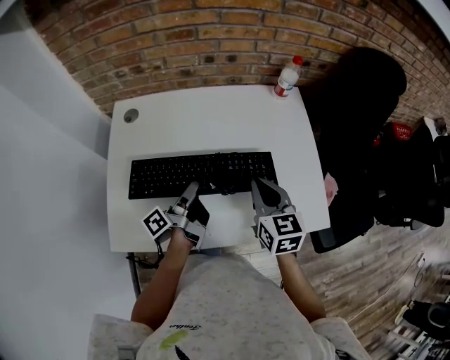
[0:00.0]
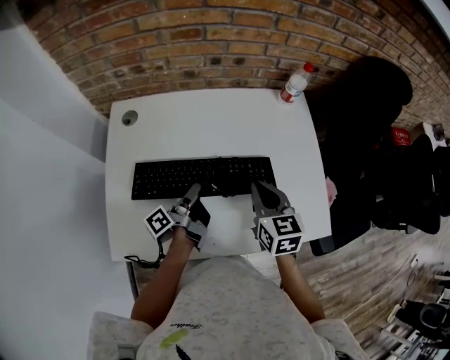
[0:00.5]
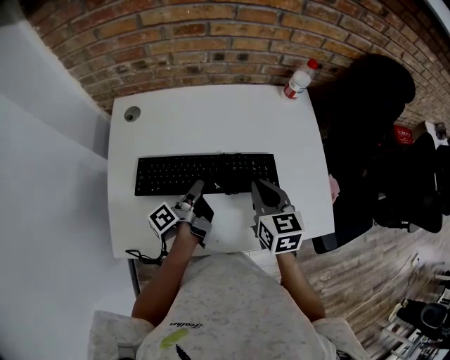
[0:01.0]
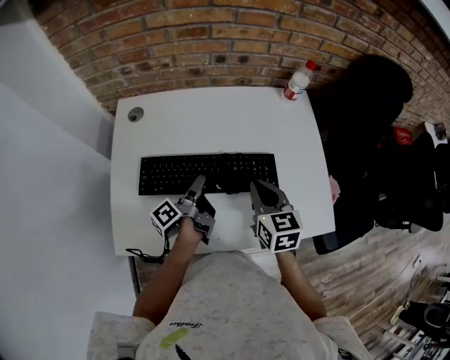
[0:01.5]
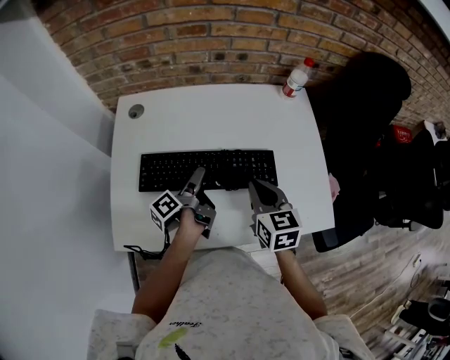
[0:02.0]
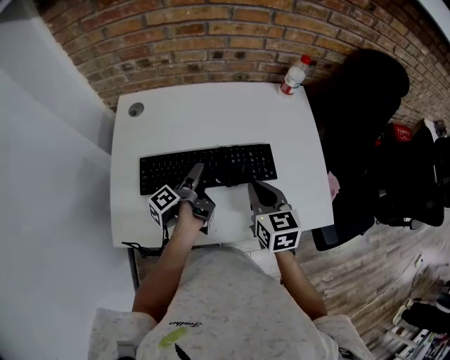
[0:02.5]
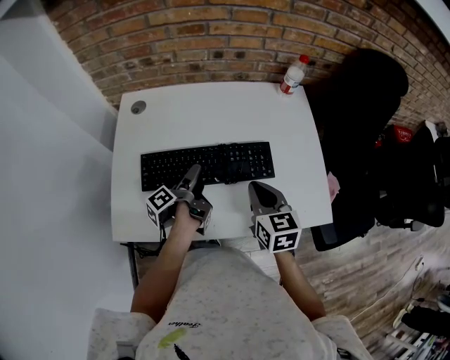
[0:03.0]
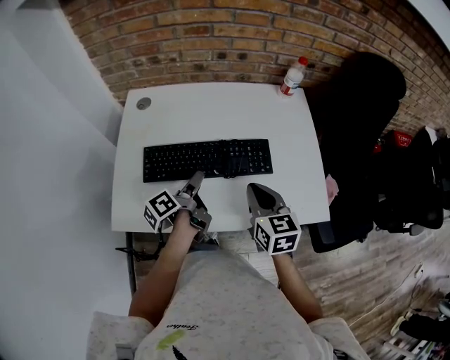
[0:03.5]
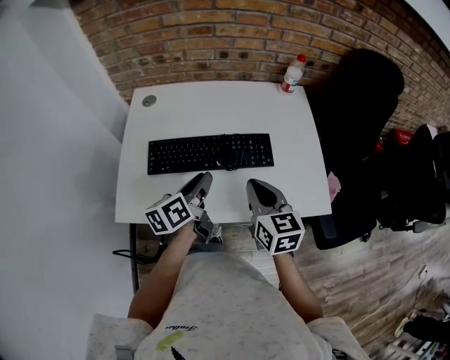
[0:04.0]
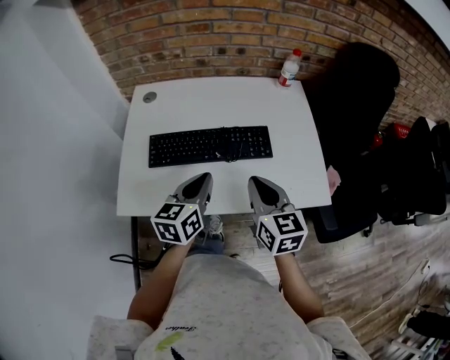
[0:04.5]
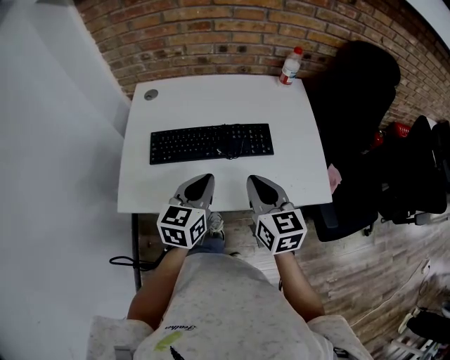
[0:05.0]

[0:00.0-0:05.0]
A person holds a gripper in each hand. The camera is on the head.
0:02.5 to 0:05.0: The right gripper moves about 15 cm.

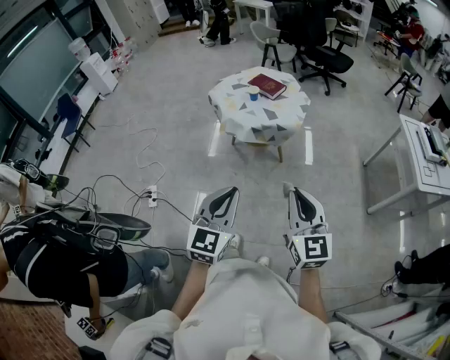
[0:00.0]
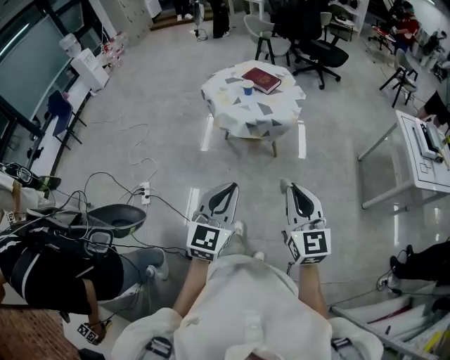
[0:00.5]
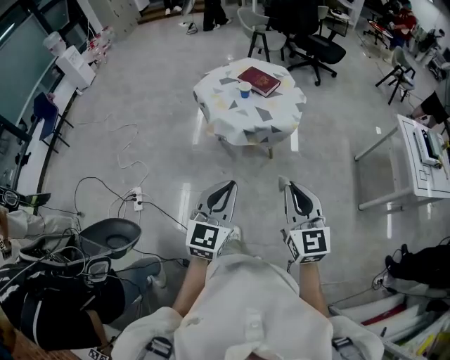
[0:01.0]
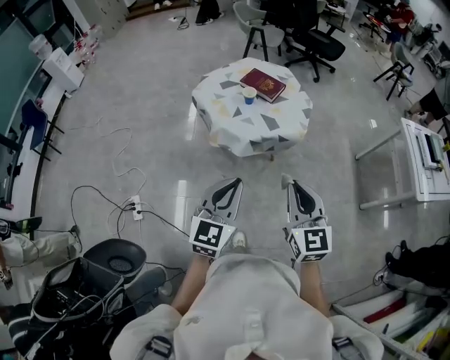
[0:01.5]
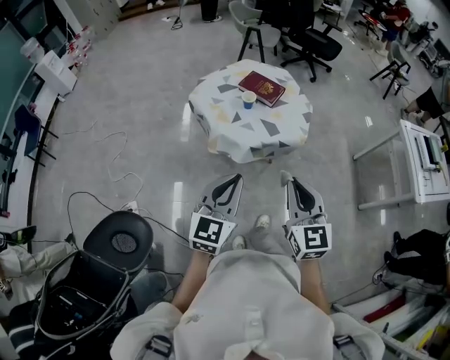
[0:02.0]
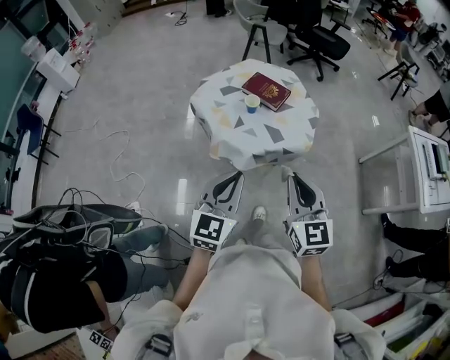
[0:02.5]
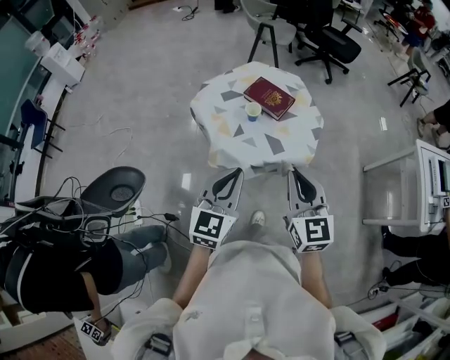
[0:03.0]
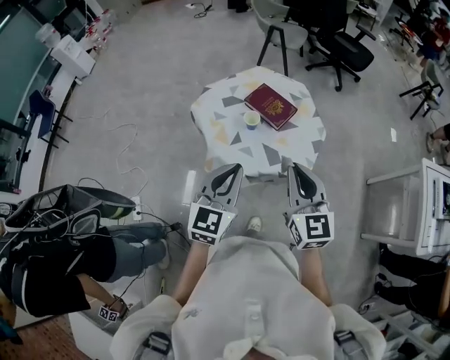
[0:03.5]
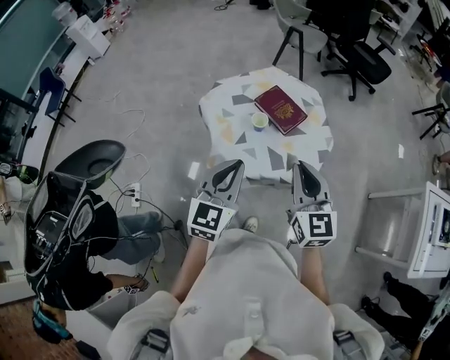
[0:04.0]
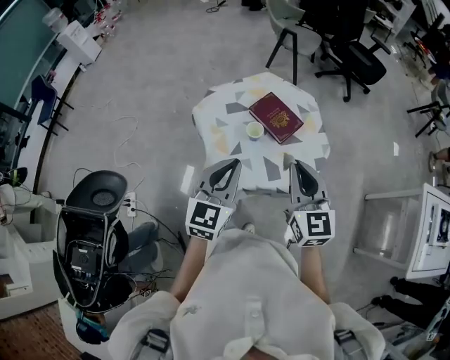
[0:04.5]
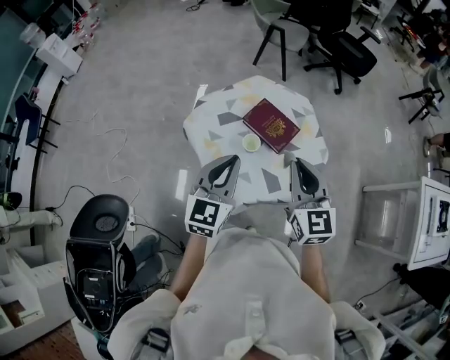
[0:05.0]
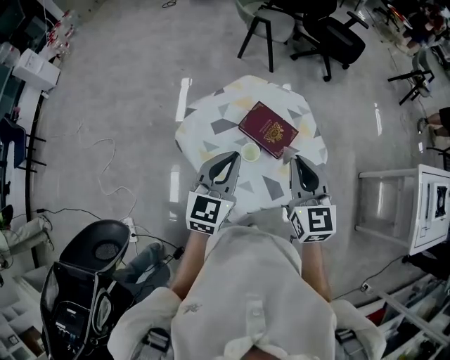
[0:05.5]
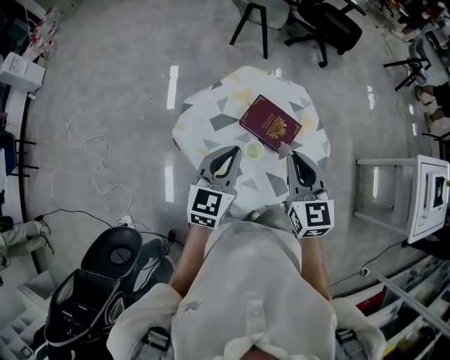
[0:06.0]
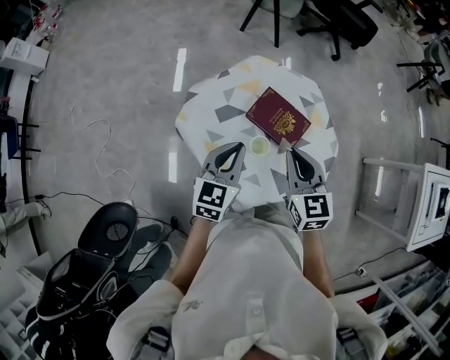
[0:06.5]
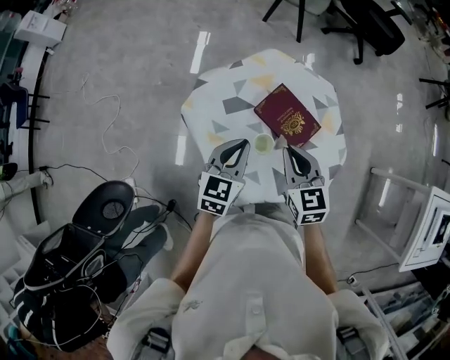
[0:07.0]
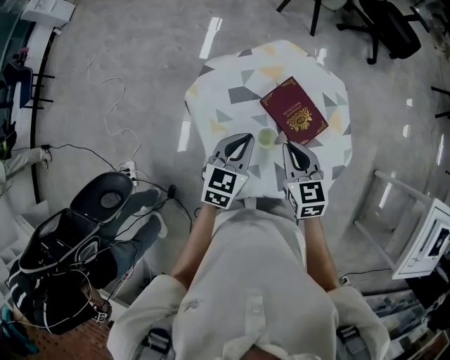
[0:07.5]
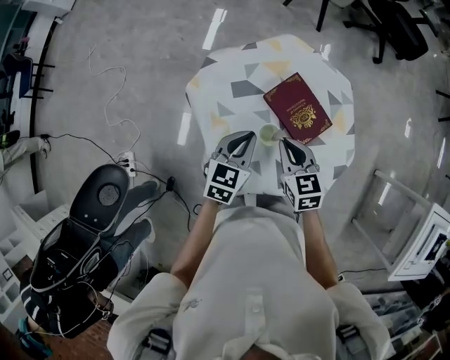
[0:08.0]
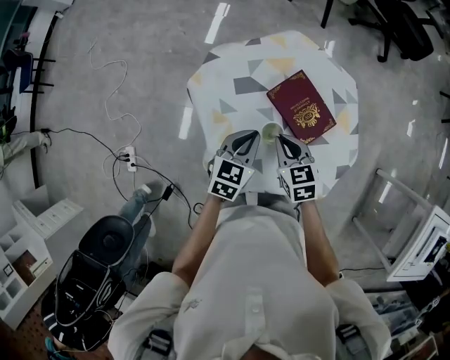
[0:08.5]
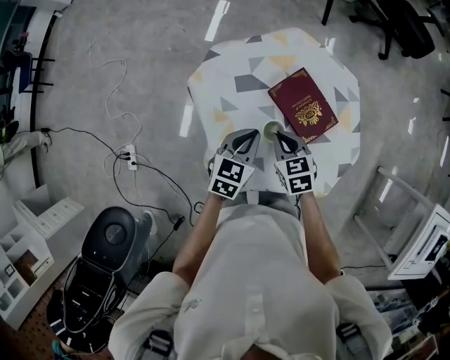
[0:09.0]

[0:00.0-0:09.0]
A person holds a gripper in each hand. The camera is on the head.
0:00.0 to 0:02.0: The left gripper goes roughly 30 cm forward. The right gripper moves forward and to the left, some 30 cm.
0:02.0 to 0:04.5: The two grippers go about 30 cm forward.
0:04.5 to 0:07.0: The left gripper heads forward and downward, covering approximately 25 cm. Meanwhile the right gripper moves forward, downward and to the left, some 25 cm, and rotates some 20 degrees.
0:07.0 to 0:09.0: The left gripper moves downward, roughly 10 cm. The right gripper shifts some 15 cm downward, and turns by approximately 30 degrees.

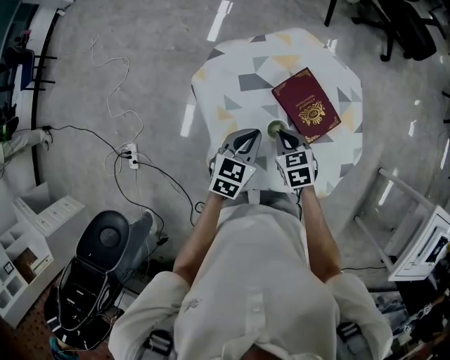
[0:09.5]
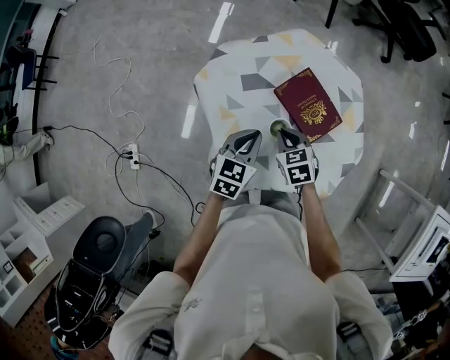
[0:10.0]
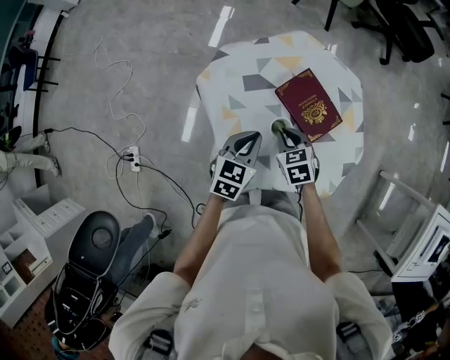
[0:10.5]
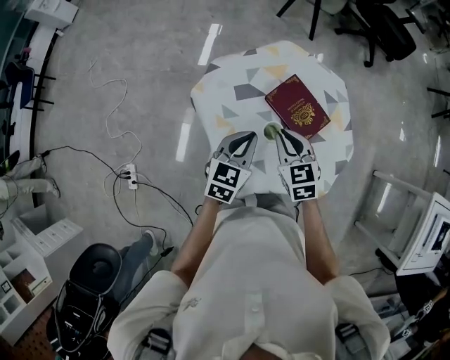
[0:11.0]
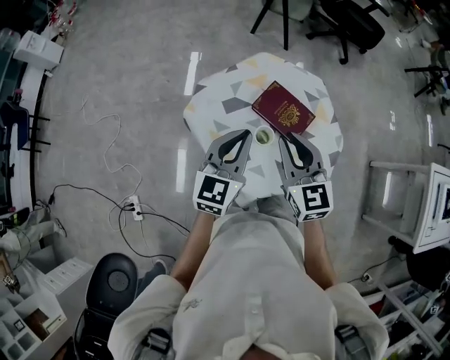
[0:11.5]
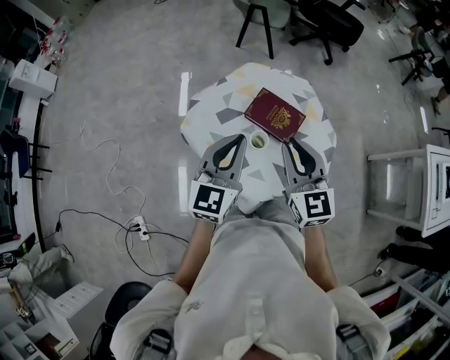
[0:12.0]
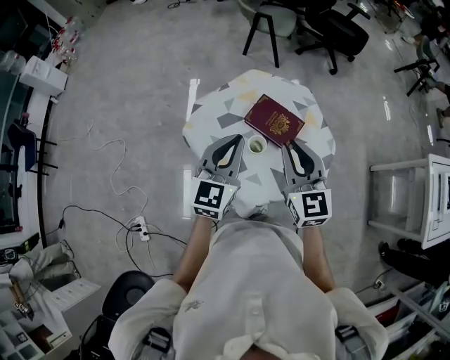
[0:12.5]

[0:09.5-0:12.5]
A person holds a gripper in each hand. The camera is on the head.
0:09.5 to 0:11.0: The right gripper moves upward, some 10 cm, while the left gripper is displaced upward by approximately 5 cm.
0:11.0 to 0:12.5: The grippers both shift upward by roughly 15 cm. The right gripper changes its angle by about 30 degrees. Meanwhile the left gripper swivels roughly 20 degrees.

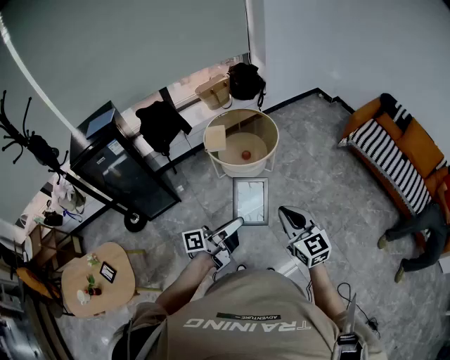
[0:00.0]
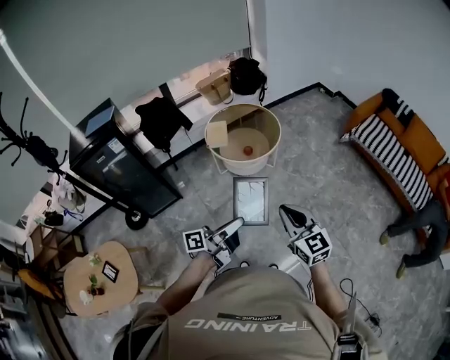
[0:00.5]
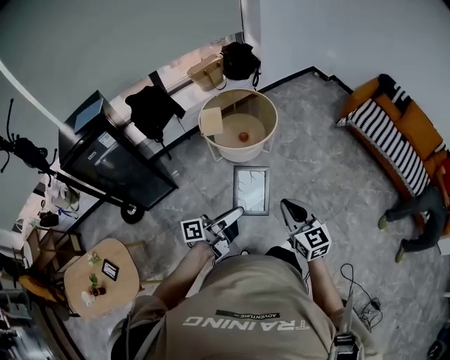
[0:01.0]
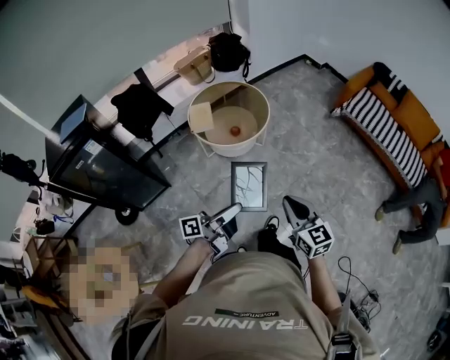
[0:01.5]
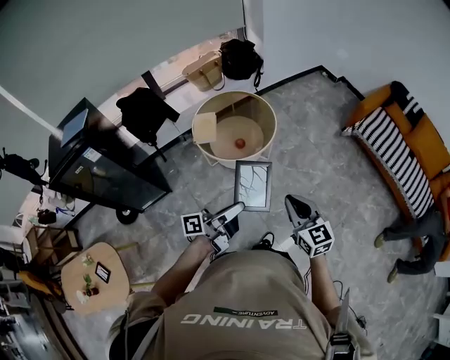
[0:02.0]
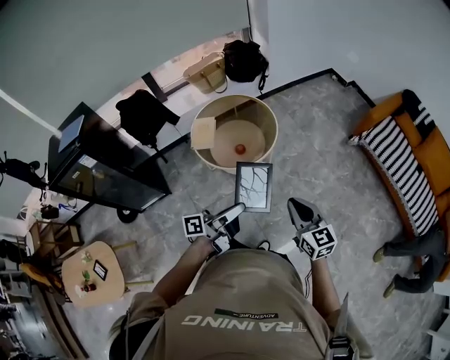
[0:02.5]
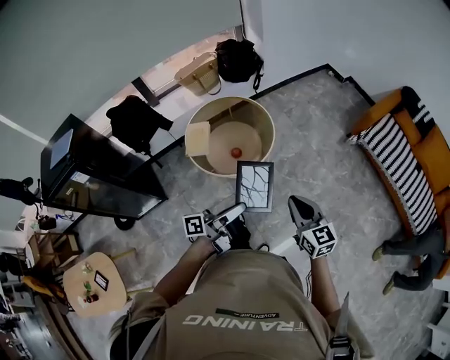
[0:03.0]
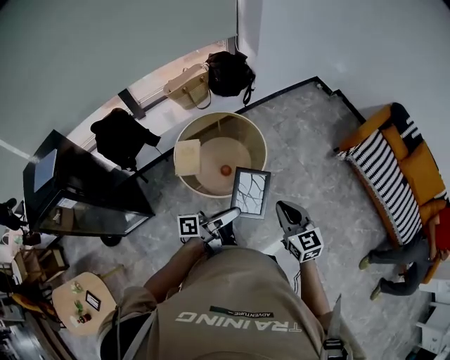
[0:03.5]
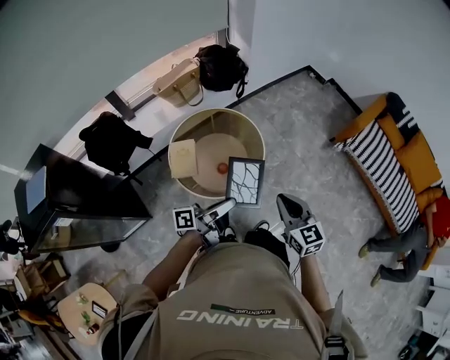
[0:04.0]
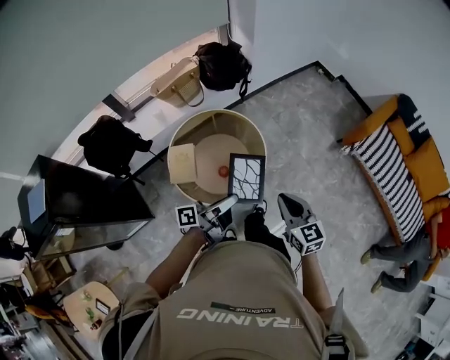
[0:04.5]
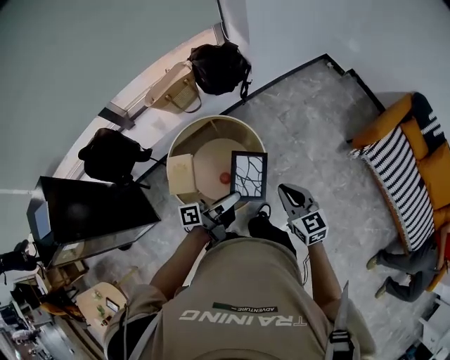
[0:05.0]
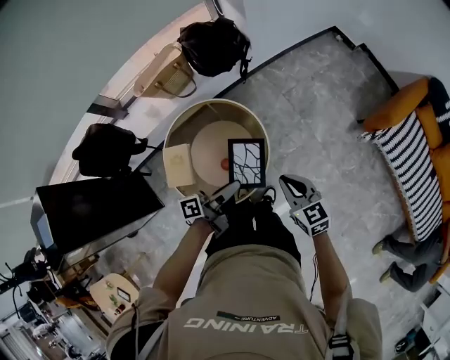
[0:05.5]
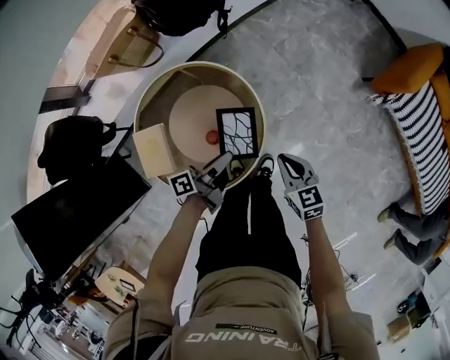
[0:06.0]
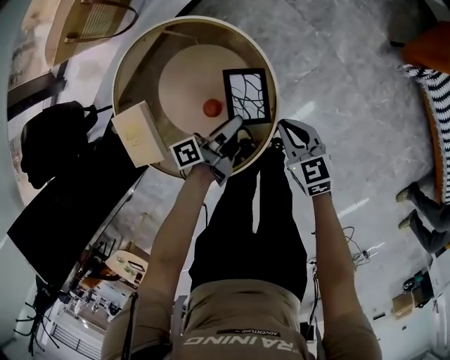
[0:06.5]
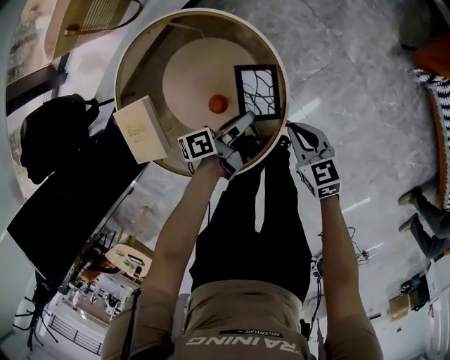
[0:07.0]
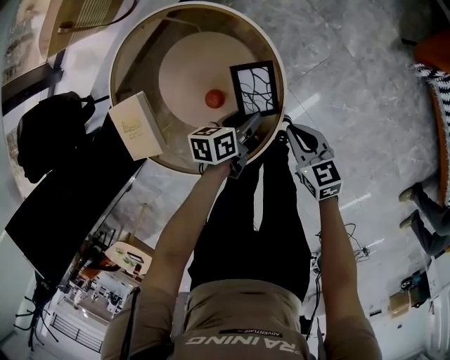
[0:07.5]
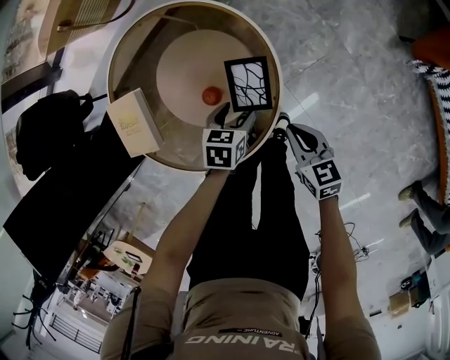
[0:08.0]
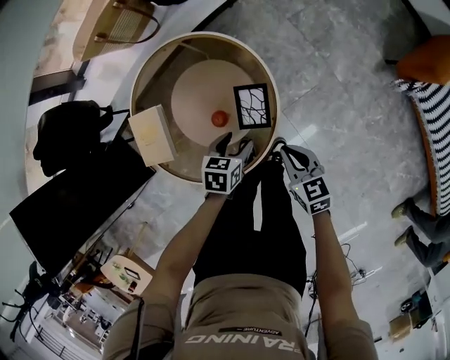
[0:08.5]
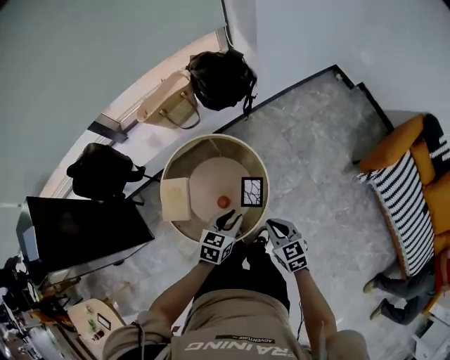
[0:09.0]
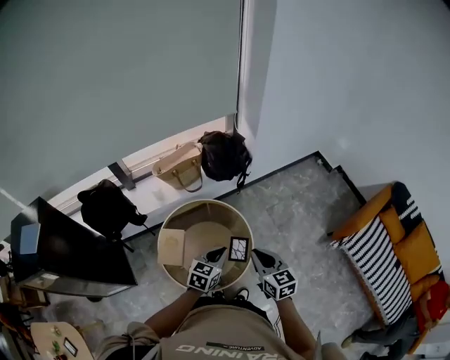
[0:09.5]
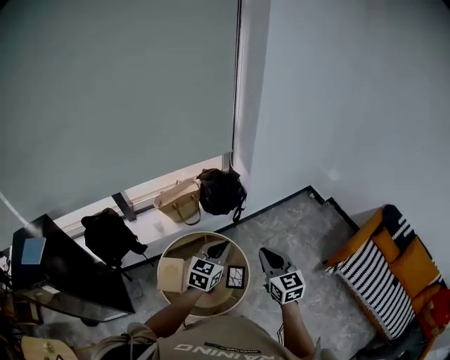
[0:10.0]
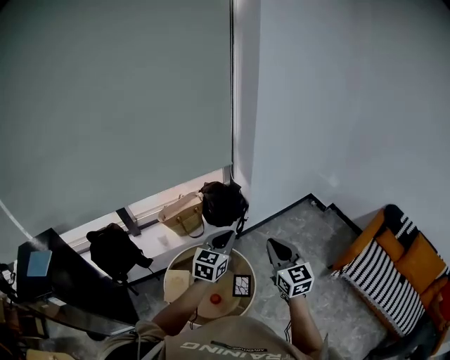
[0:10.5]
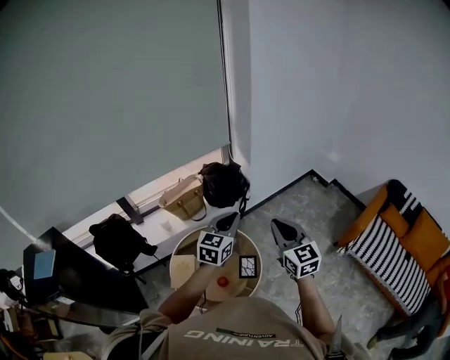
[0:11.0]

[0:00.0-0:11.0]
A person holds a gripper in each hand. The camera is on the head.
0:00.0 to 0:02.0: The grippers both shift forward by some 20 cm.
0:02.0 to 0:03.5: Both grippers move forward, roughly 25 cm.
0:03.5 to 0:05.5: Both grippers move forward, some 30 cm.
0:05.5 to 0:07.5: Both grippers move downward, some 35 cm. The left gripper points its fingers about 40 degrees further downward. The right gripper rotates some 20 degrees.
0:07.5 to 0:09.0: Both grippers move upward, approximately 25 cm. The left gripper changes its angle by approximately 40 degrees, and opens and closes again.
0:09.0 to 0:11.0: The grippers both shift upward by about 35 cm. The left gripper angles its fingers upward, by about 30 degrees, and closes; the right gripper points its fingers roughly 30 degrees further upward.
